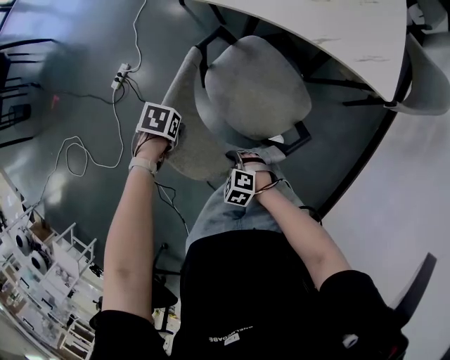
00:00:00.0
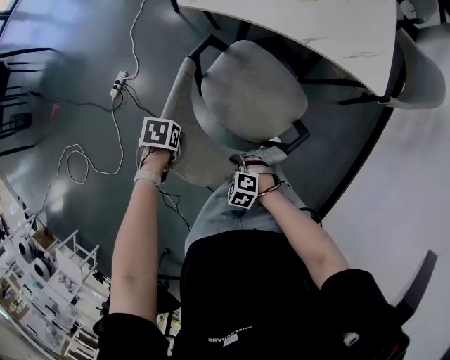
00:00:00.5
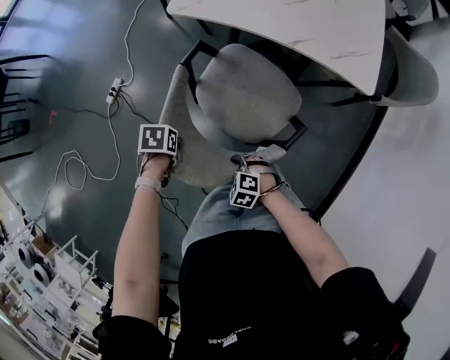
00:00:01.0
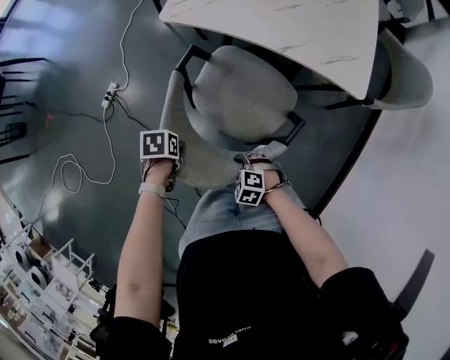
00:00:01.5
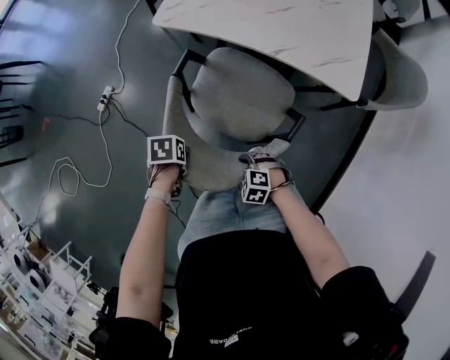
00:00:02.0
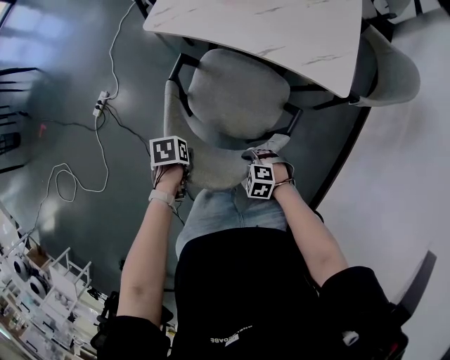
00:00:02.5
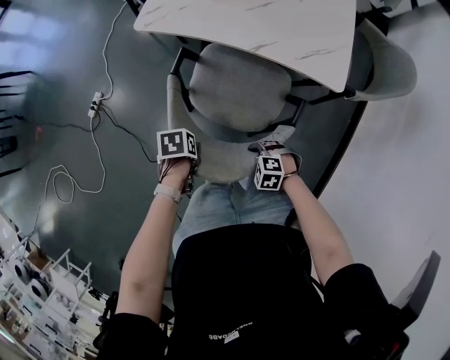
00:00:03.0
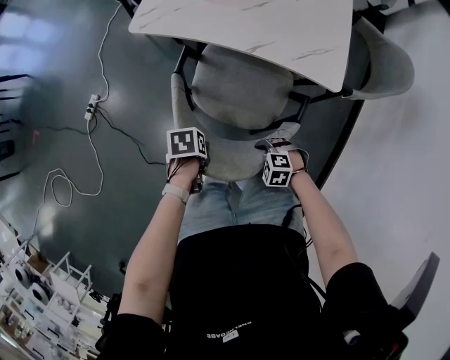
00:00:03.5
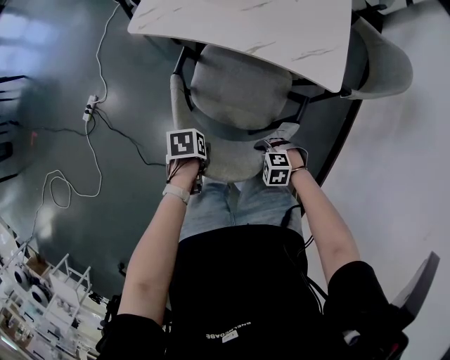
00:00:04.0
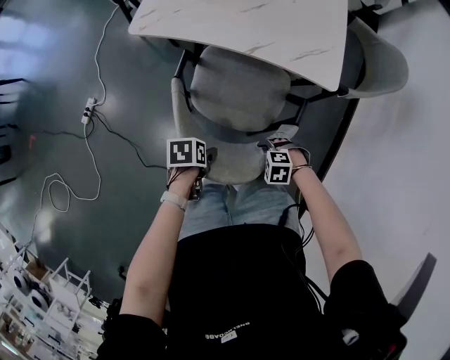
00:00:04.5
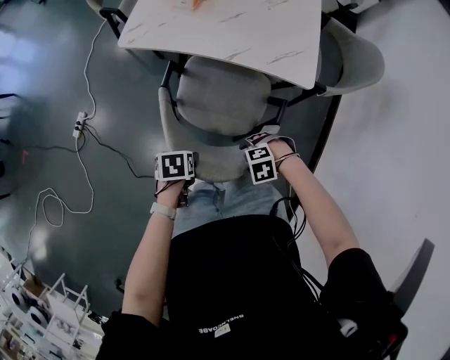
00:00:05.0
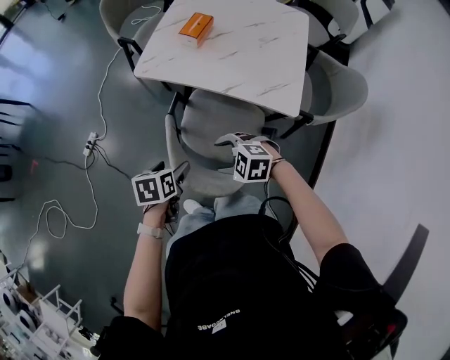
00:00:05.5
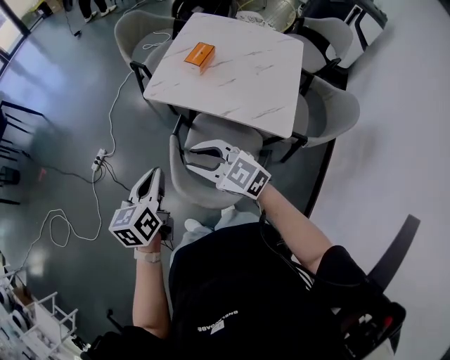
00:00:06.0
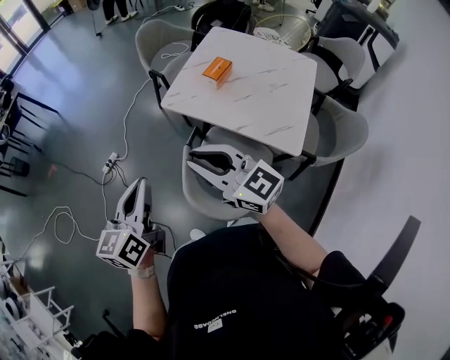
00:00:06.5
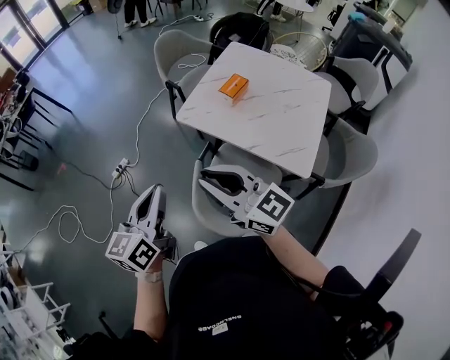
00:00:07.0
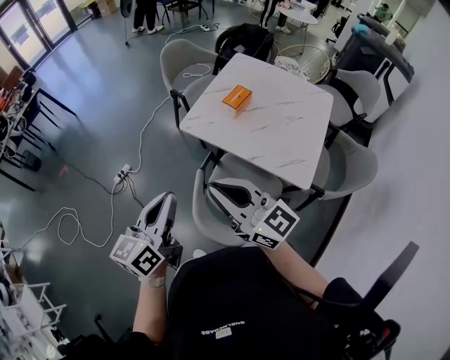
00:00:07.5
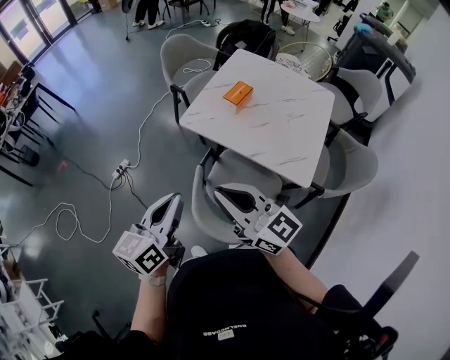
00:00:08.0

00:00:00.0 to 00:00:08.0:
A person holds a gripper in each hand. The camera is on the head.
00:00:00.0 to 00:00:02.0: The left gripper changes place by about 10 cm, while the right gripper ends up about 15 cm from where it was.
00:00:02.0 to 00:00:04.0: The right gripper shifts by some 10 cm. Meanwhile the left gripper changes place by approximately 10 cm.
00:00:04.0 to 00:00:06.0: Both grippers move upward, about 40 cm. The left gripper tilts its fingers some 50 degrees upward, and closes up, while the right gripper tips its fingers upward by roughly 50 degrees, and opens, then closes again.
00:00:06.0 to 00:00:08.0: The grippers both shift upward by some 10 cm. The right gripper changes its angle by about 30 degrees, and closes its fingers.

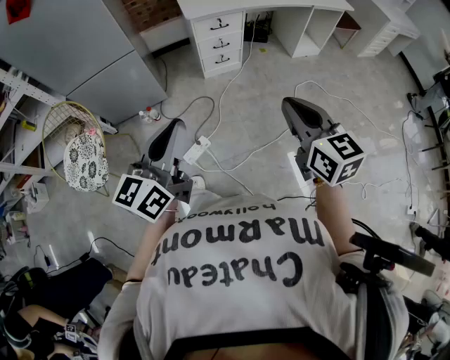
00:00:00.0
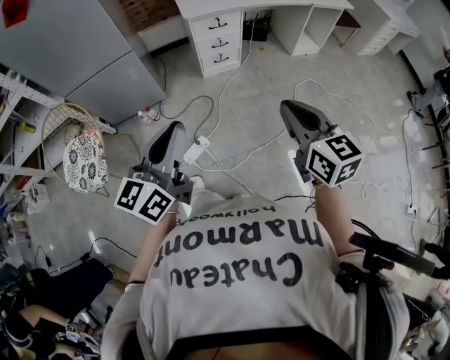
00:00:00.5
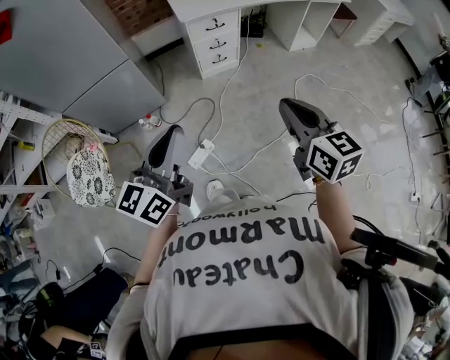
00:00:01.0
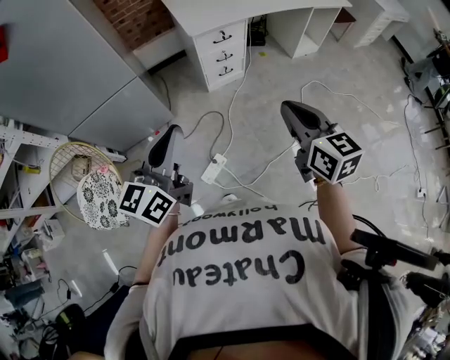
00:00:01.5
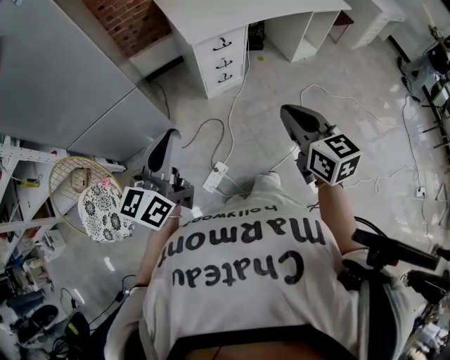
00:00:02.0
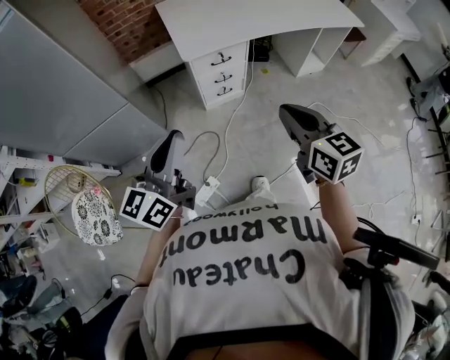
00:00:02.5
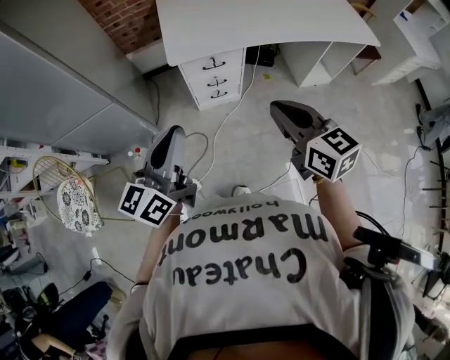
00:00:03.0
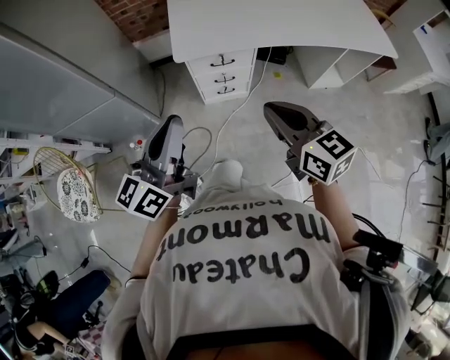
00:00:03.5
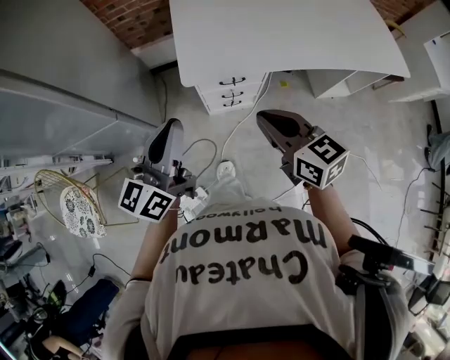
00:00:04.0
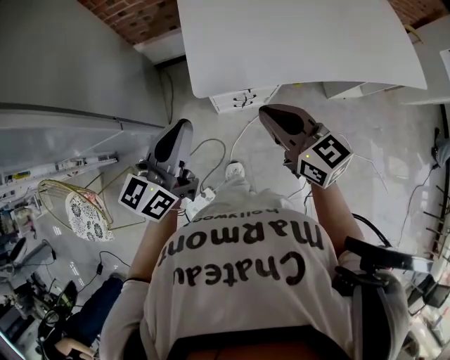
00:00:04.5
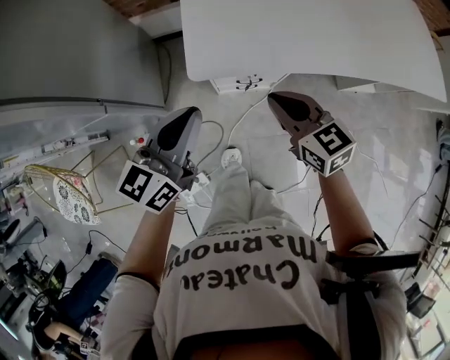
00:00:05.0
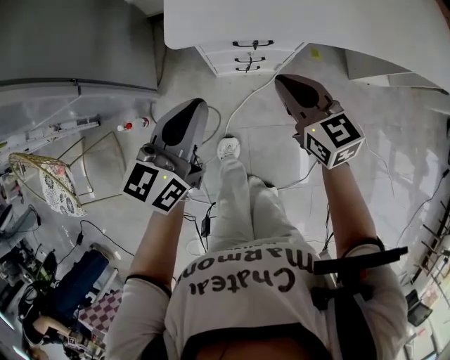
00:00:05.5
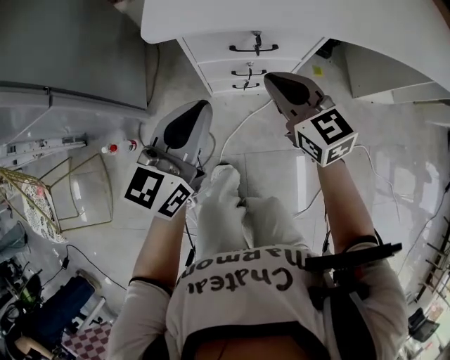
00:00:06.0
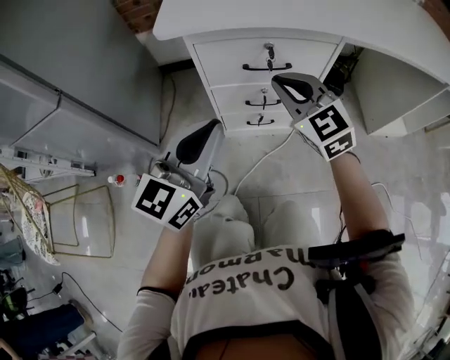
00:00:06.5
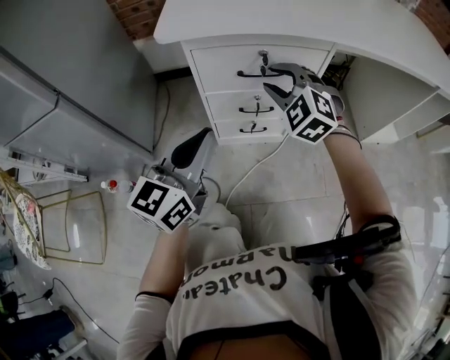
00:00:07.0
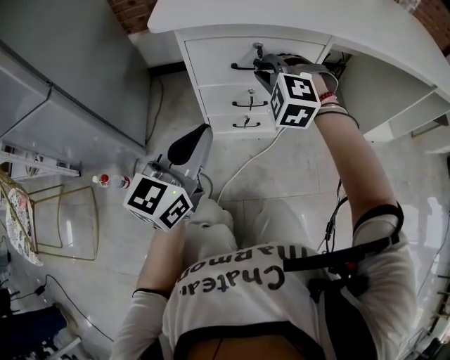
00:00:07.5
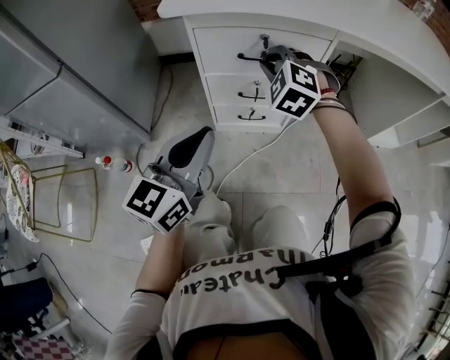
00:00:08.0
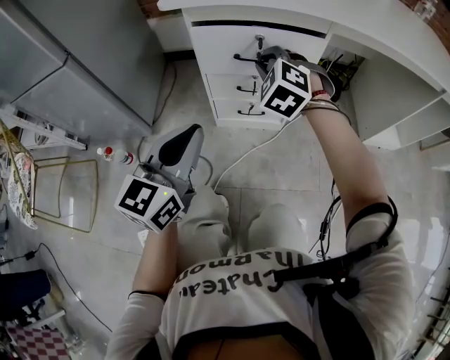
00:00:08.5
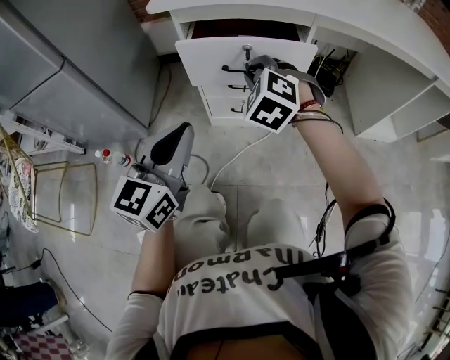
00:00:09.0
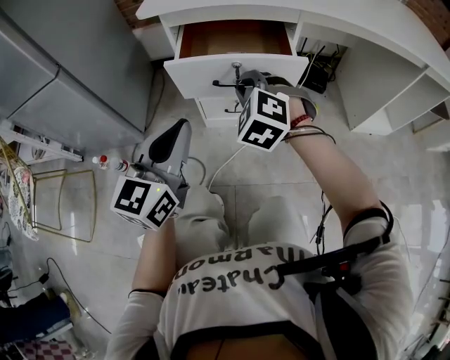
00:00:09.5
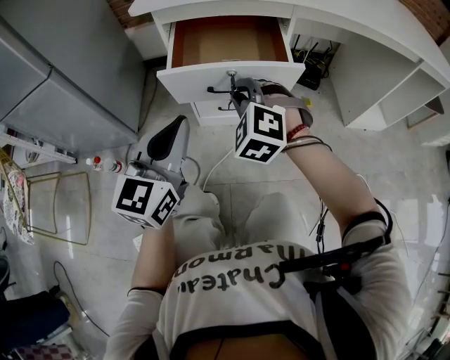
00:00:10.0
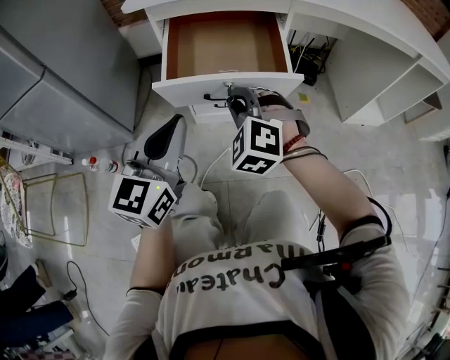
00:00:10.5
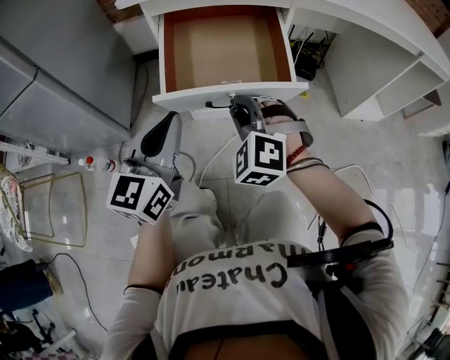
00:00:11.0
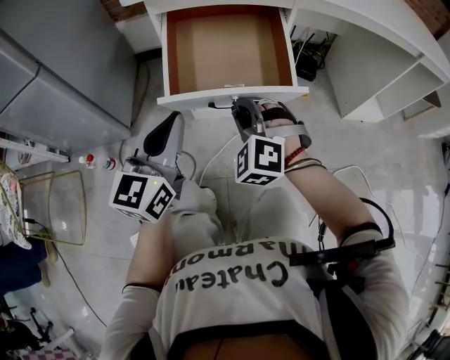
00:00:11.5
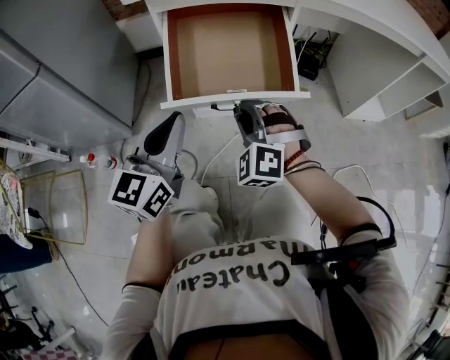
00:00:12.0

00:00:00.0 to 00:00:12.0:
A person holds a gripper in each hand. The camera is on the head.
00:00:00.0 to 00:00:02.0: The grippers both shift forward and to the left by about 20 cm.
00:00:02.0 to 00:00:04.0: The right gripper is displaced forward by roughly 35 cm, and swivels roughly 30 degrees; the left gripper moves forward and to the right, roughly 35 cm.
00:00:04.0 to 00:00:06.0: The left gripper heads downward, covering approximately 35 cm; the right gripper shifts roughly 35 cm downward and forward.
00:00:06.0 to 00:00:08.0: The right gripper moves forward and downward, some 10 cm, twists some 60 degrees counterclockwise, seen from behind, and opens, then closes again, while the left gripper goes approximately 10 cm downward and backward.
00:00:08.0 to 00:00:10.0: The right gripper is displaced backward by some 15 cm.
00:00:10.0 to 00:00:12.0: The right gripper moves downward, about 5 cm.

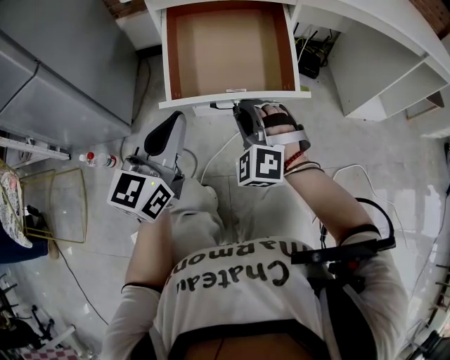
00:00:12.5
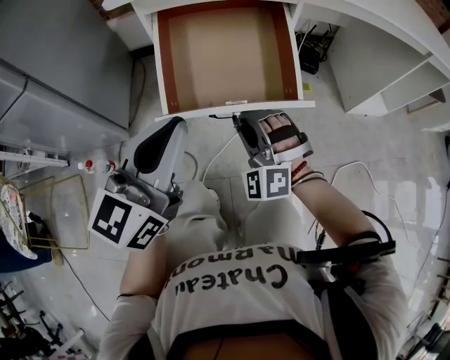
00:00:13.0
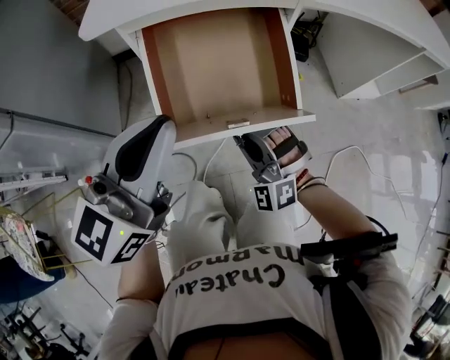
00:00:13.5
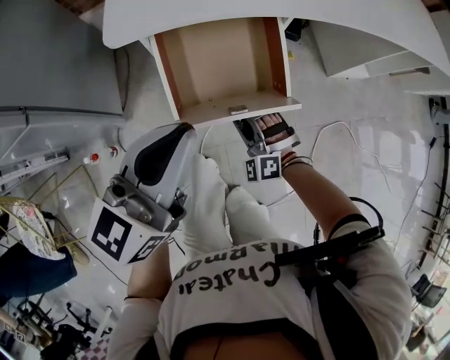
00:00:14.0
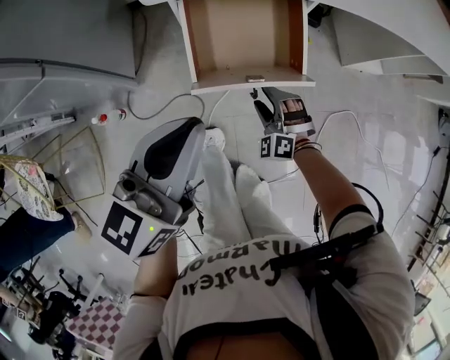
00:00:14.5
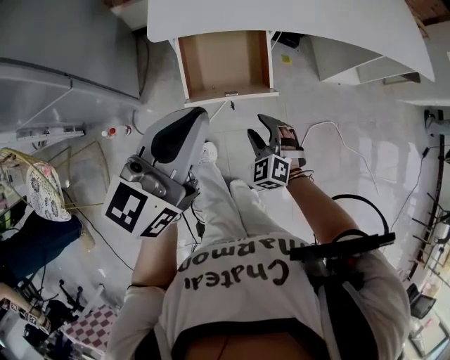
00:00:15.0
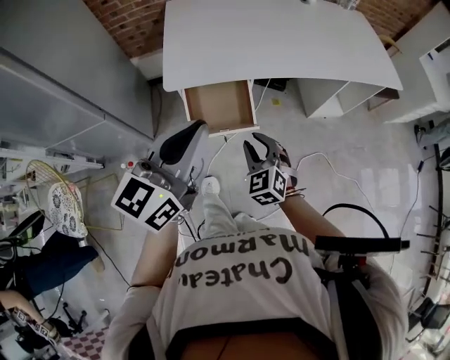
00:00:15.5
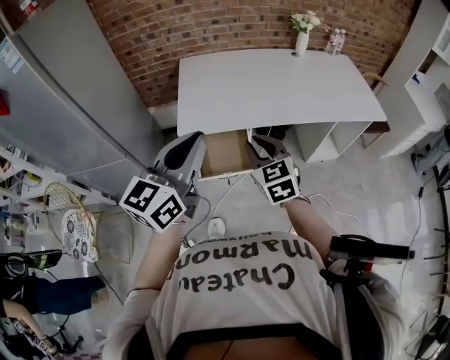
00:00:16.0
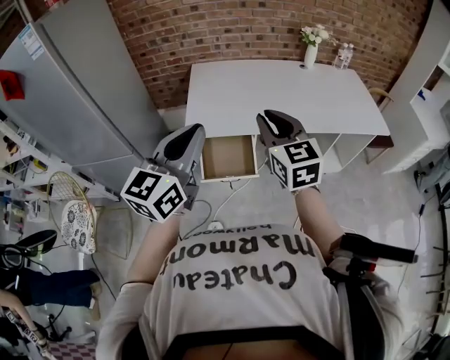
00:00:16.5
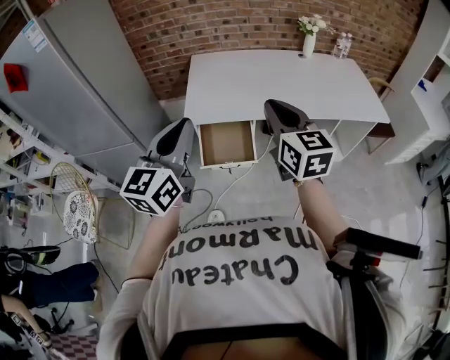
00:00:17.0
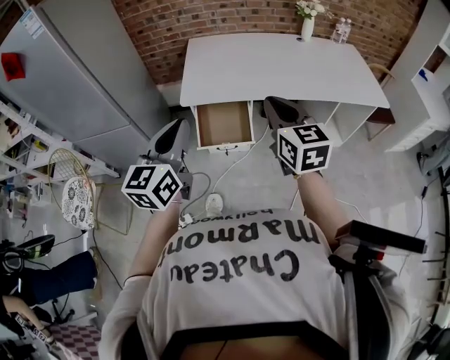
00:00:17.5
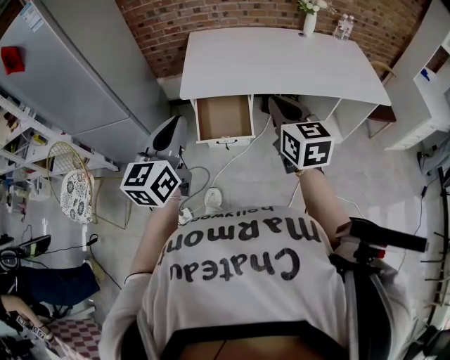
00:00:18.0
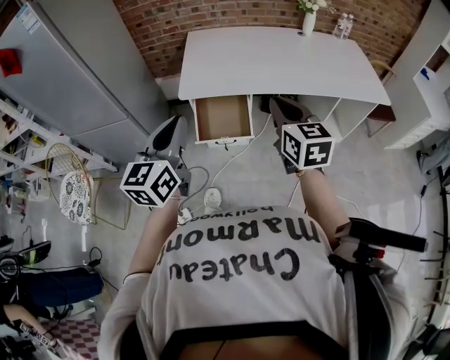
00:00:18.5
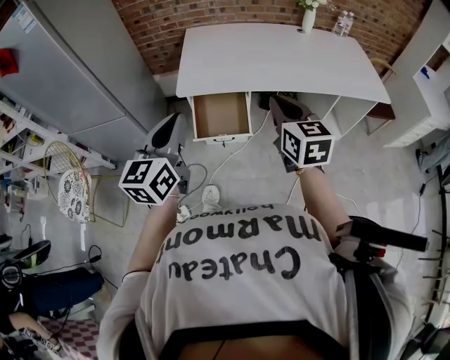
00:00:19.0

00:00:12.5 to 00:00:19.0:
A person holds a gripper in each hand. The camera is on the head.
00:00:12.5 to 00:00:14.5: The right gripper opens. Meanwhile the left gripper moves upward, approximately 20 cm.
00:00:14.5 to 00:00:17.0: The left gripper goes some 40 cm upward, and changes its angle by roughly 20 degrees. Meanwhile the right gripper shifts about 70 cm upward, rotates around the line of its fingers by approximately 70 degrees, clockwise from behind, and closes.
00:00:17.0 to 00:00:19.0: Both grippers move downward, about 10 cm.
